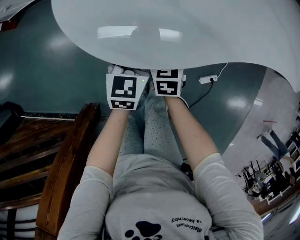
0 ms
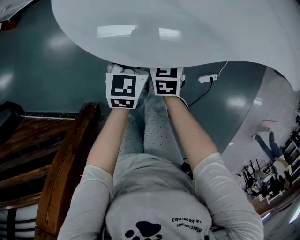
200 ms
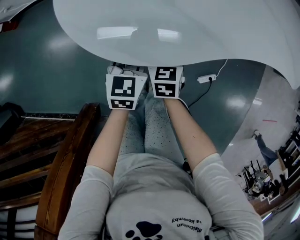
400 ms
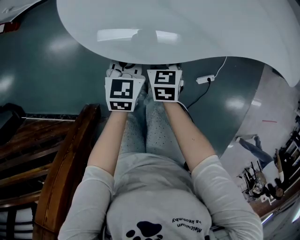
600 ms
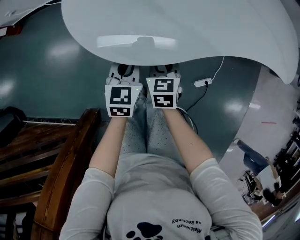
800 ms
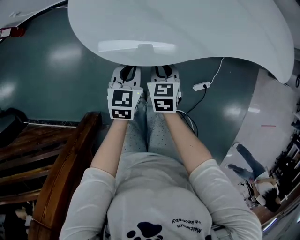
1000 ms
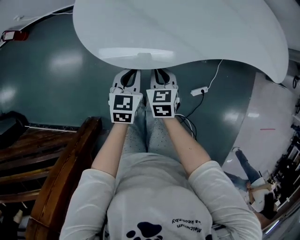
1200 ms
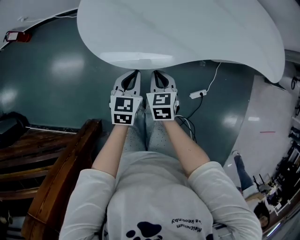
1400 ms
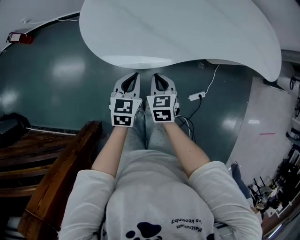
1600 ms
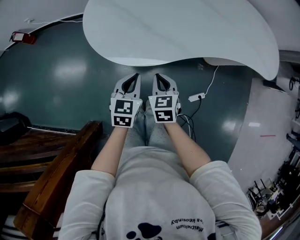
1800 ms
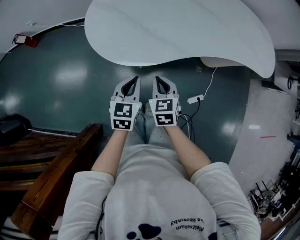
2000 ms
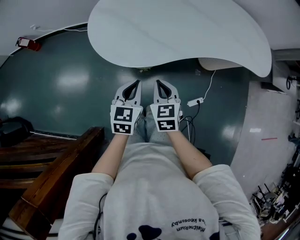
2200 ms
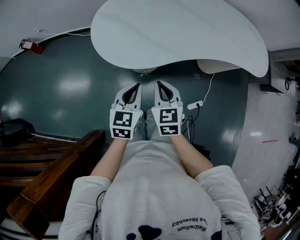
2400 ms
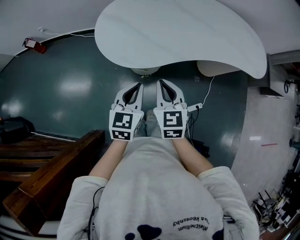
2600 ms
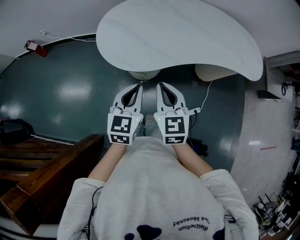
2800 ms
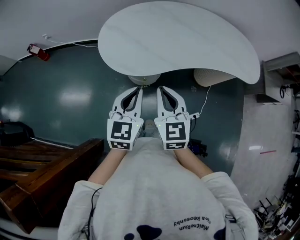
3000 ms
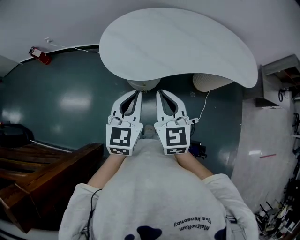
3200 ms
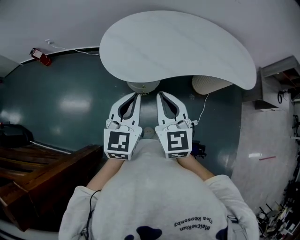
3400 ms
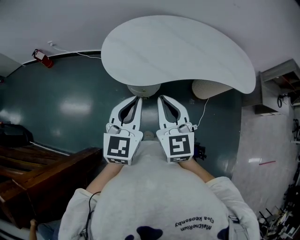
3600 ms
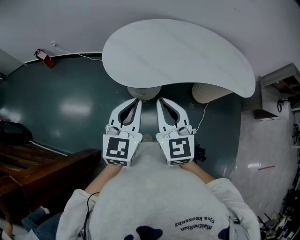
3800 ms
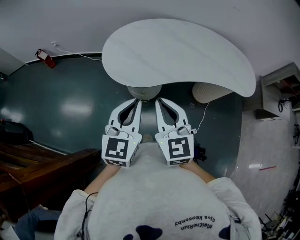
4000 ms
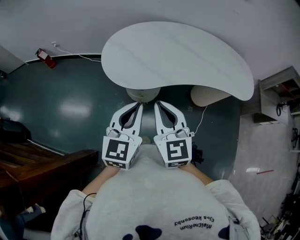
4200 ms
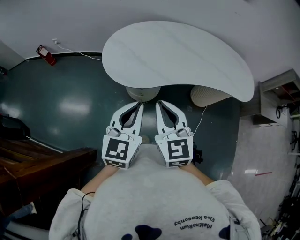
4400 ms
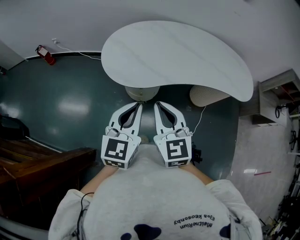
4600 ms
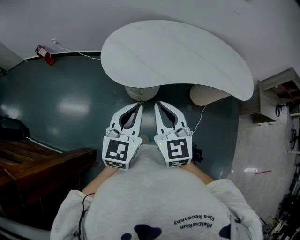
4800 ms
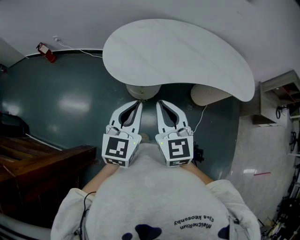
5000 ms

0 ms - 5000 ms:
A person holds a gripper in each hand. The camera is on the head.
0 ms - 1600 ms: The left gripper travels backward and upward by some 10 cm. The right gripper travels upward and backward by approximately 15 cm, and closes.
1600 ms - 3400 ms: Both grippers travel together upward, about 30 cm. The right gripper points its fingers approximately 30 degrees further upward. Meanwhile the left gripper swivels roughly 20 degrees.
3400 ms - 5000 ms: The grippers stay close to where they were, moving slightly.

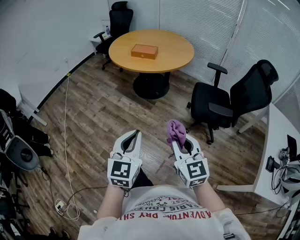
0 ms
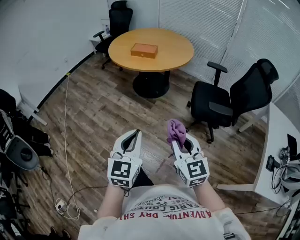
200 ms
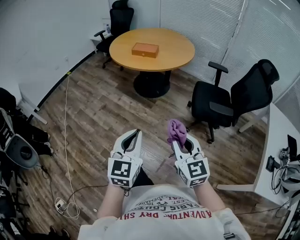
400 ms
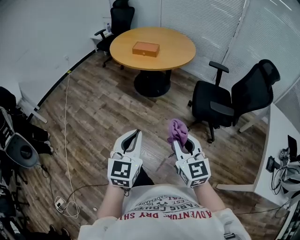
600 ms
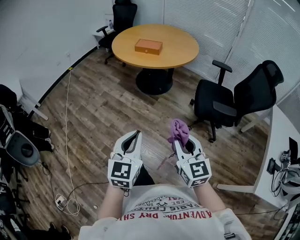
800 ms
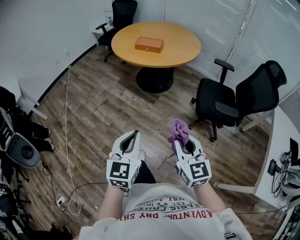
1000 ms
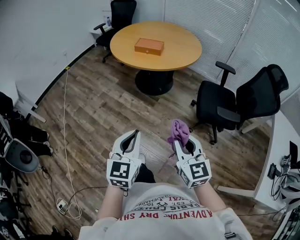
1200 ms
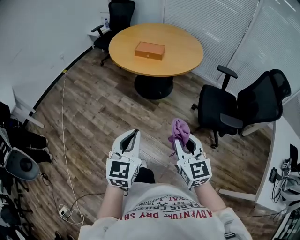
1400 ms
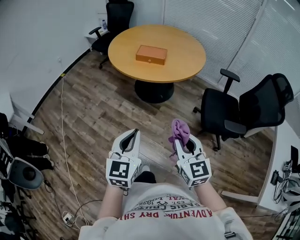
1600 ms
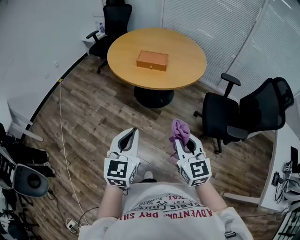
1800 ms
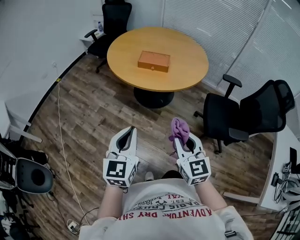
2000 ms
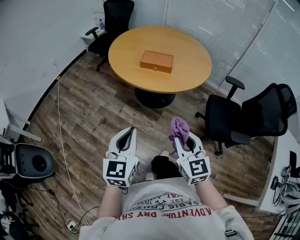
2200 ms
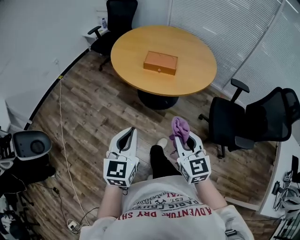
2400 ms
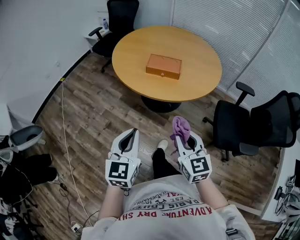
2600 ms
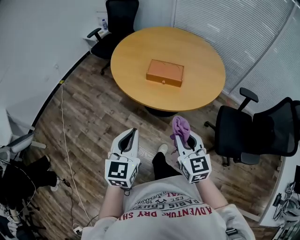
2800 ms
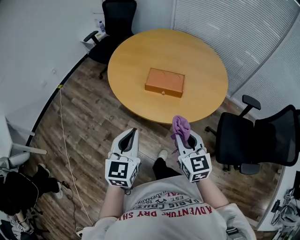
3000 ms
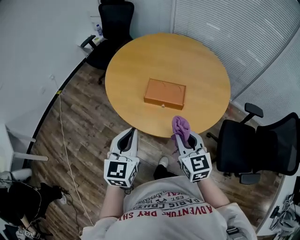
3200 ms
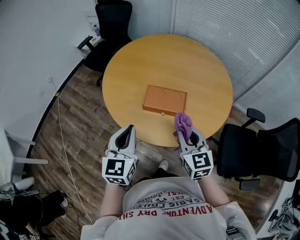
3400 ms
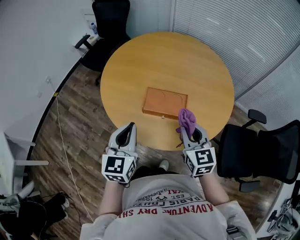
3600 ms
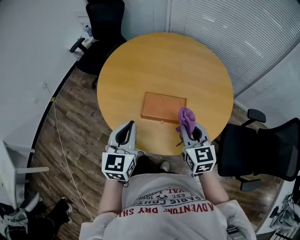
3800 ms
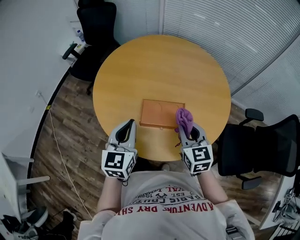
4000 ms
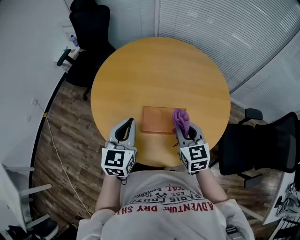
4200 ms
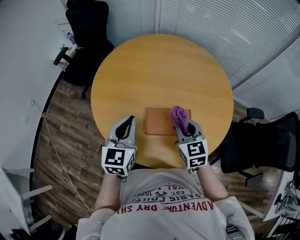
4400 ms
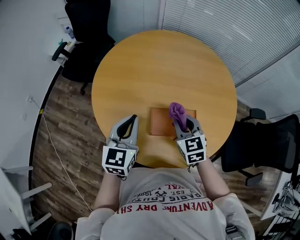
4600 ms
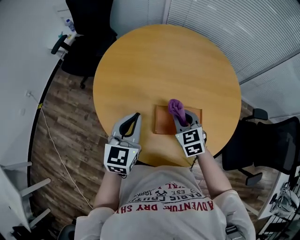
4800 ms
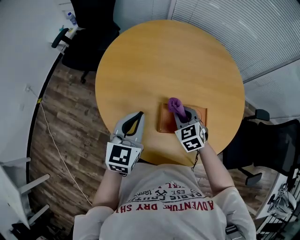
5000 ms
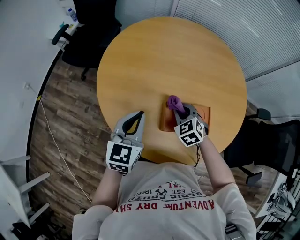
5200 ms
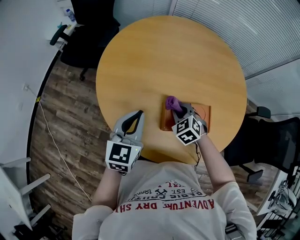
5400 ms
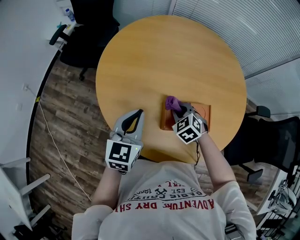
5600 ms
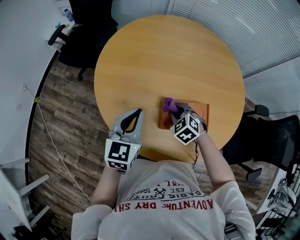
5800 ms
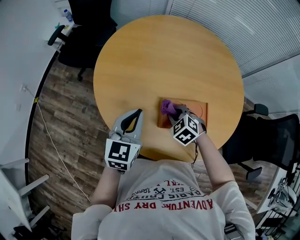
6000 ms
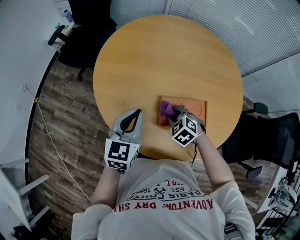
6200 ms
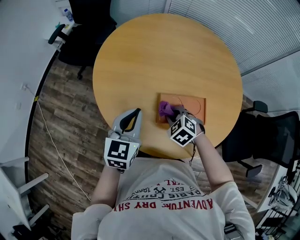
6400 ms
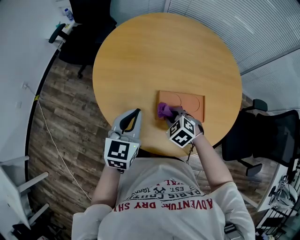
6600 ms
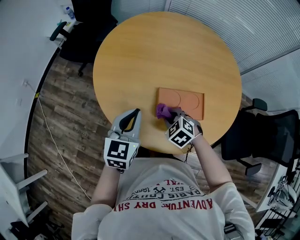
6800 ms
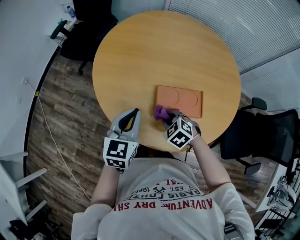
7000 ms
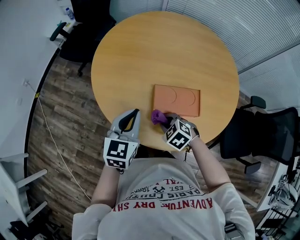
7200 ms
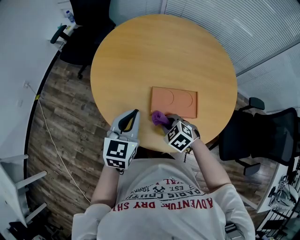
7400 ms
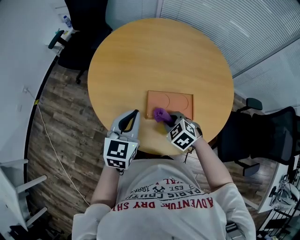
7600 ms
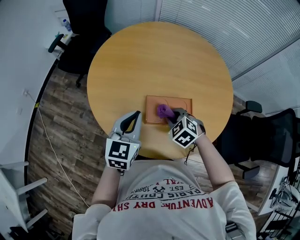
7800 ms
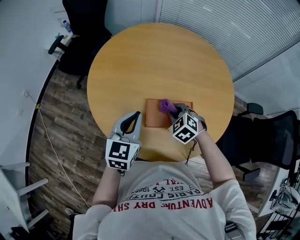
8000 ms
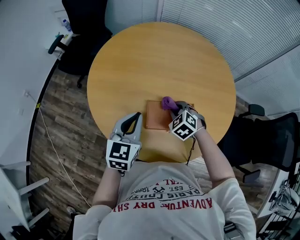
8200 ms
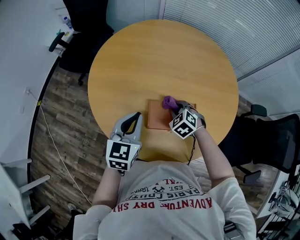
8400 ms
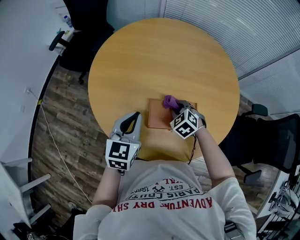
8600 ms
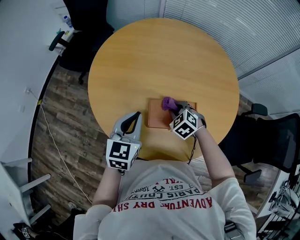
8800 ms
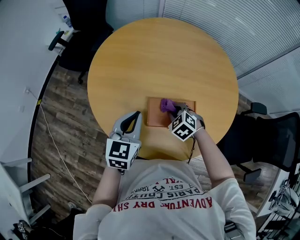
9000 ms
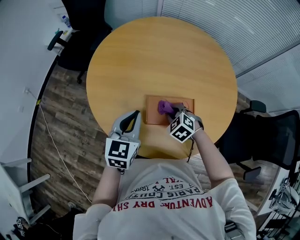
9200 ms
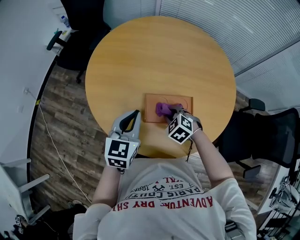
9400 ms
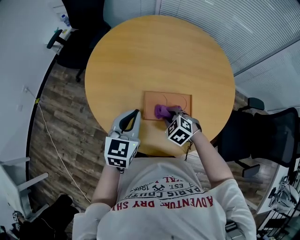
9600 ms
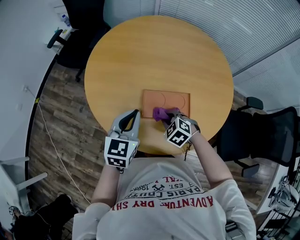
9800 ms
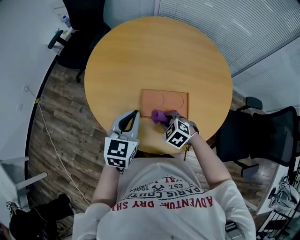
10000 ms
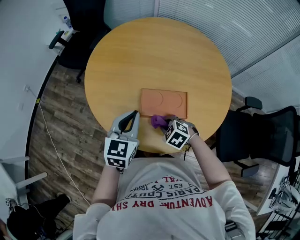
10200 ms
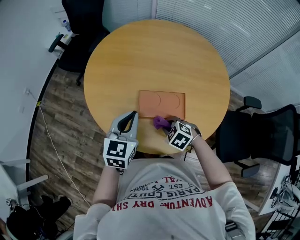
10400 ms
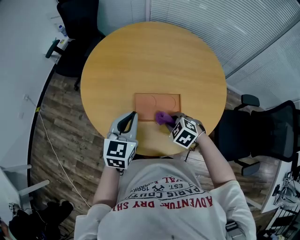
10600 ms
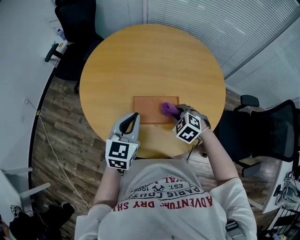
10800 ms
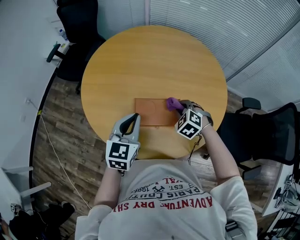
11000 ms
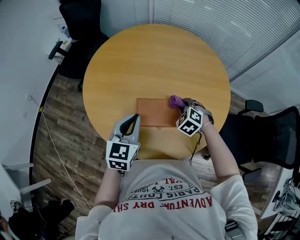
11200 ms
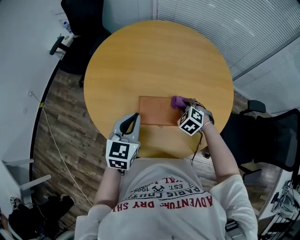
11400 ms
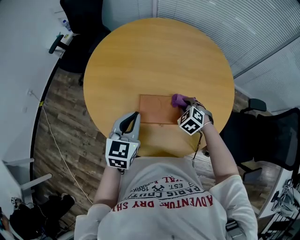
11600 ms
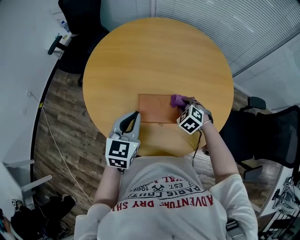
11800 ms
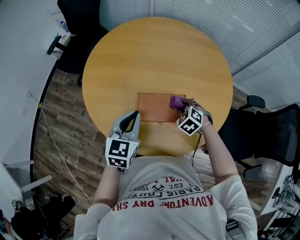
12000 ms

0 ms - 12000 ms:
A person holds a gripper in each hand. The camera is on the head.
0 ms - 1600 ms: Both grippers travel together forward and to the left, about 25 cm.
1600 ms - 3000 ms: The pair of grippers is taken forward, about 40 cm.
3000 ms - 4400 ms: Both grippers travel together forward, roughly 35 cm.
4400 ms - 6000 ms: The right gripper heads downward and to the left, covering approximately 20 cm, and tilts its fingers approximately 30 degrees downward. Meanwhile the left gripper travels downward and to the left by some 10 cm.
6000 ms - 7600 ms: Both grippers travel together backward, about 10 cm.
7600 ms - 9000 ms: The right gripper goes about 10 cm forward.
9000 ms - 10400 ms: The left gripper goes roughly 5 cm backward. The right gripper goes approximately 15 cm backward.
10400 ms - 12000 ms: The right gripper is displaced forward and to the right by some 15 cm.

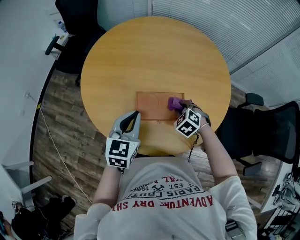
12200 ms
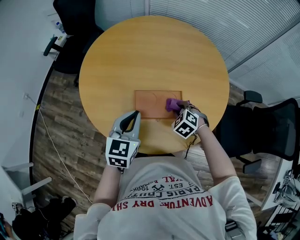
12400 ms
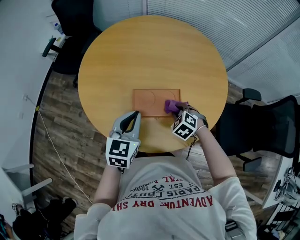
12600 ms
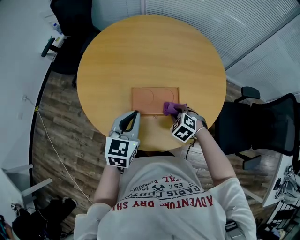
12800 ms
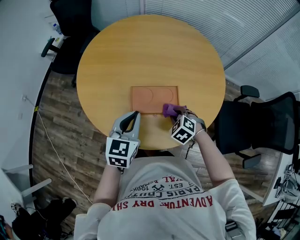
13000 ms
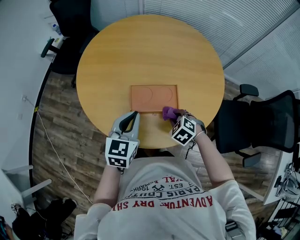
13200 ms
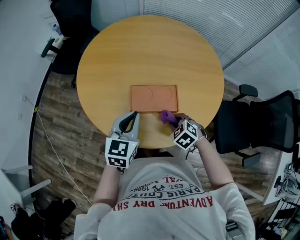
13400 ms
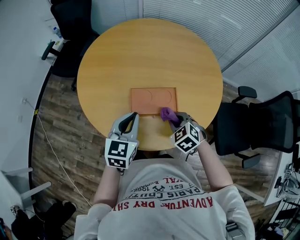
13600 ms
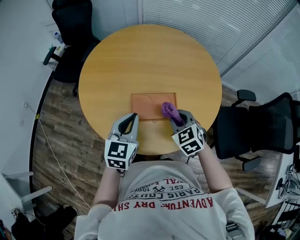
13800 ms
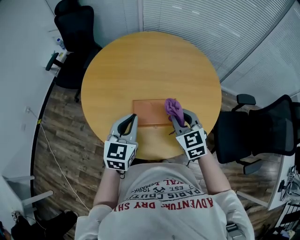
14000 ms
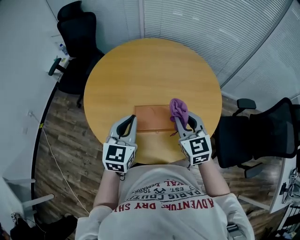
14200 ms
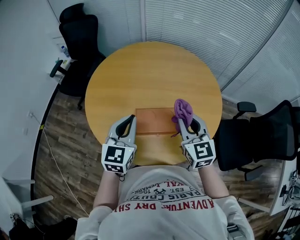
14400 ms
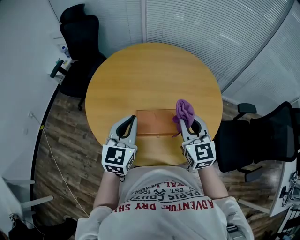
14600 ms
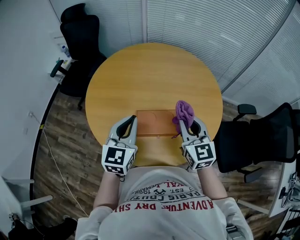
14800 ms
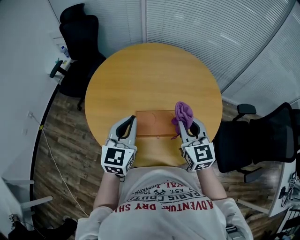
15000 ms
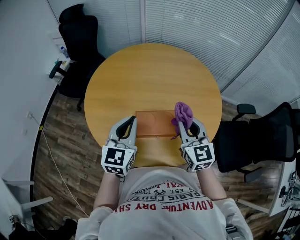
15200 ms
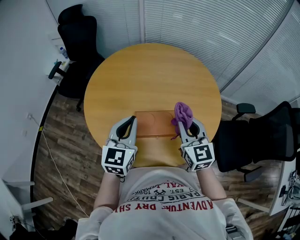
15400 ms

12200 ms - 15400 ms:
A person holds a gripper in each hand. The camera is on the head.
12200 ms - 13800 ms: The right gripper goes about 15 cm upward and backward, and changes its angle by some 30 degrees.
13800 ms - 15400 ms: The left gripper goes about 5 cm upward, while the right gripper moves upward, about 10 cm, and tips its fingers upward by approximately 30 degrees.

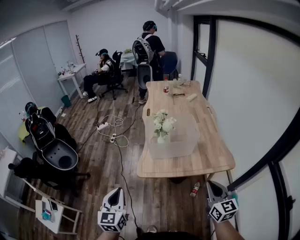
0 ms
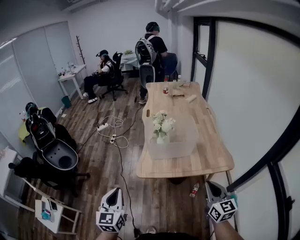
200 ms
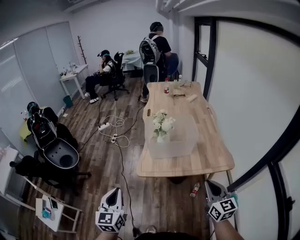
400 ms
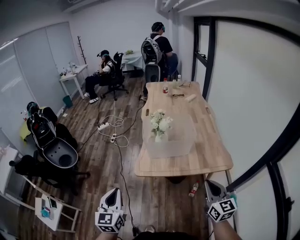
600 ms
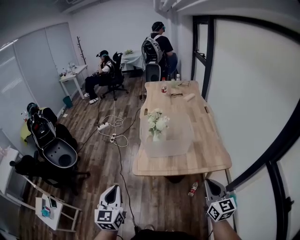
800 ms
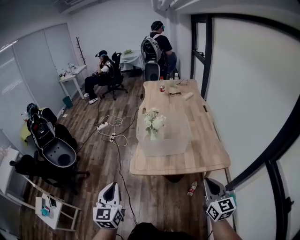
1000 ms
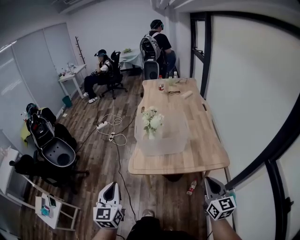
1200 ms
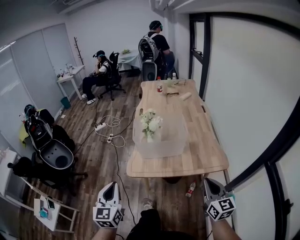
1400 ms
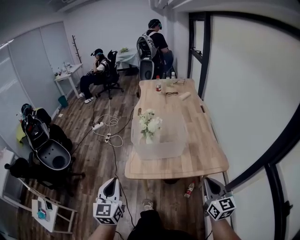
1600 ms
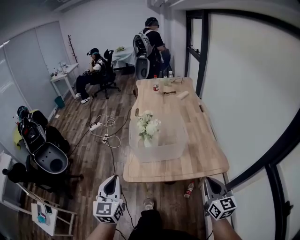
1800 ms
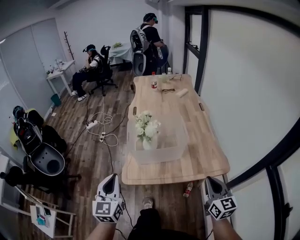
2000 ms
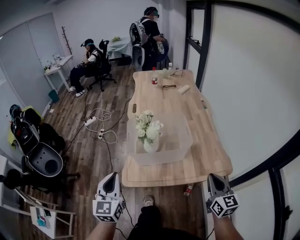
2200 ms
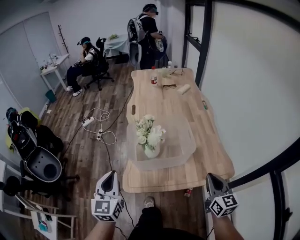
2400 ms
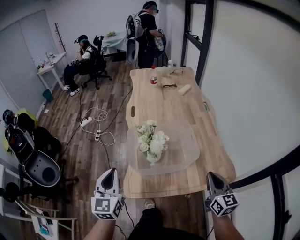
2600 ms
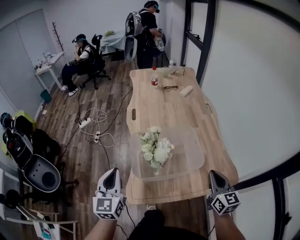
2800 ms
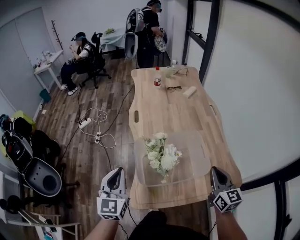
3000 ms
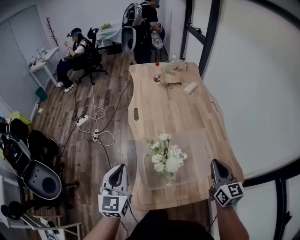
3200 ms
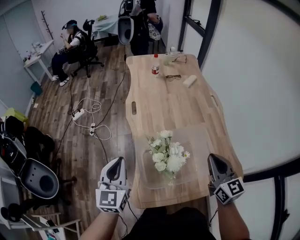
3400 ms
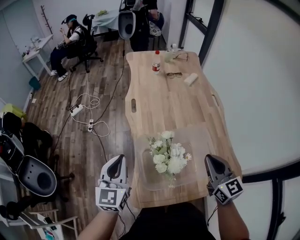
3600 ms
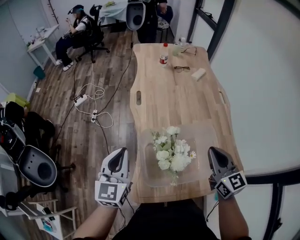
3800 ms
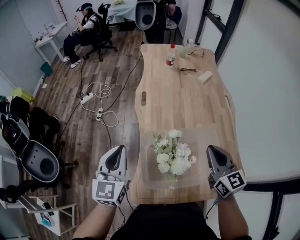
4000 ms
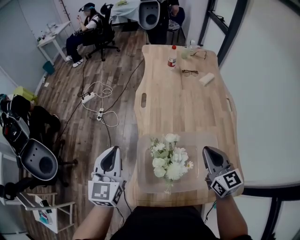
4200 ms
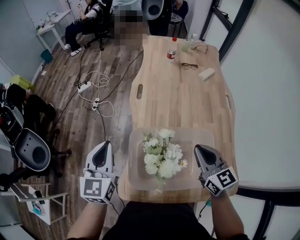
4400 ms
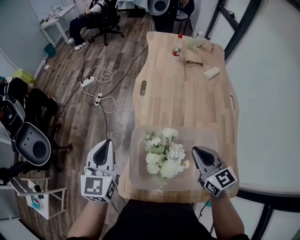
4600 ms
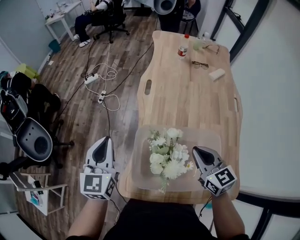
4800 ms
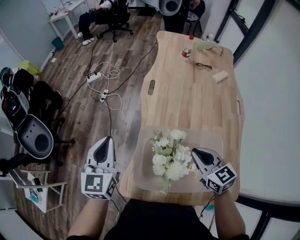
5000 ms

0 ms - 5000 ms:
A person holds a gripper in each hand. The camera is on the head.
0 ms - 1600 ms: Both grippers travel together to the right, some 10 cm.
1600 ms - 3400 ms: Both grippers travel together forward, approximately 35 cm.
3400 ms - 5000 ms: The left gripper shifts by roughly 5 cm. Meanwhile the right gripper shifts by some 15 cm, and turns by some 40 degrees.
